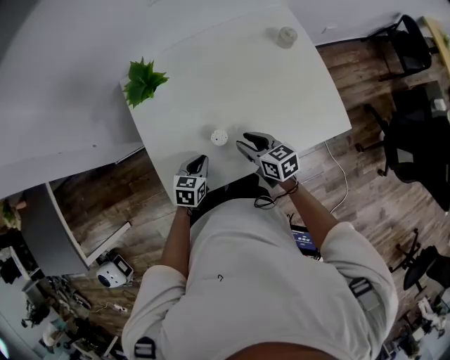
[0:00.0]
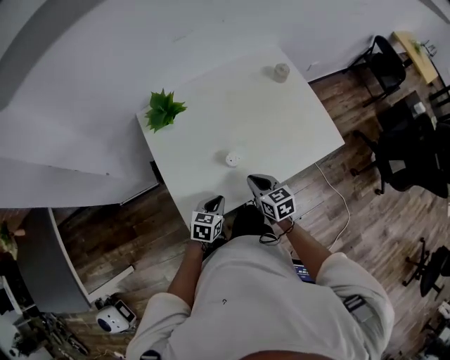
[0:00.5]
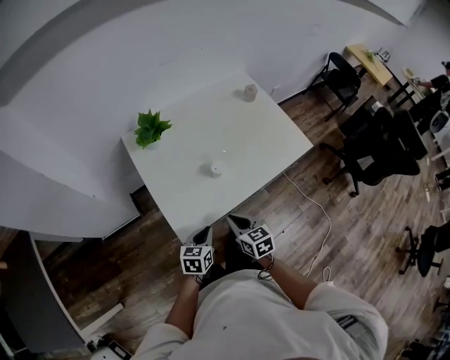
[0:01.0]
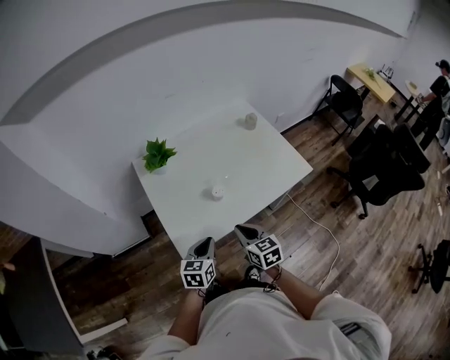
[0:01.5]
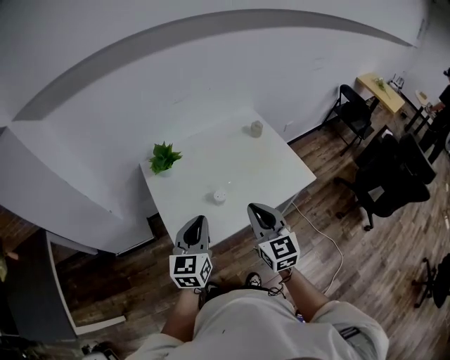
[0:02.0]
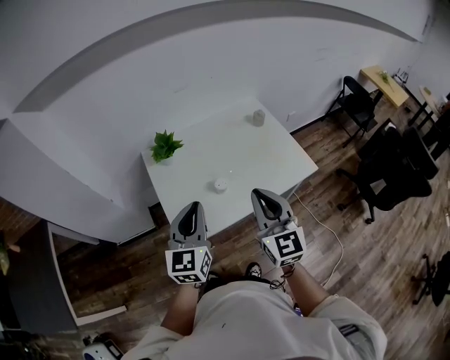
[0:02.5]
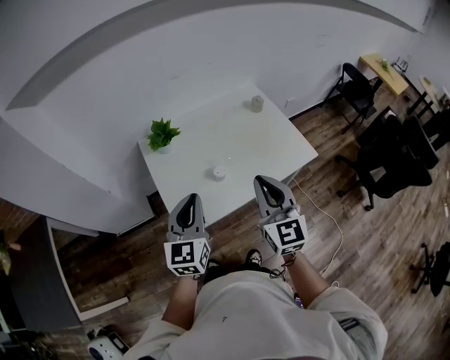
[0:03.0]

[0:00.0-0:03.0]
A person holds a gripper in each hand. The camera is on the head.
0:00.0 to 0:01.5: The grippers both shift backward and upward by approximately 20 cm. The right gripper swivels roughly 30 degrees, and closes up.
0:01.5 to 0:03.0: Both grippers travel together upward, roughly 20 cm. The right gripper rotates roughly 30 degrees. Meanwhile the left gripper changes its angle by approximately 30 degrees.

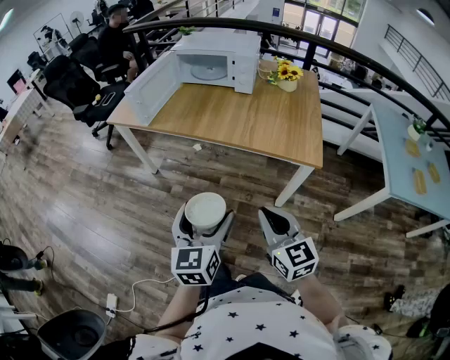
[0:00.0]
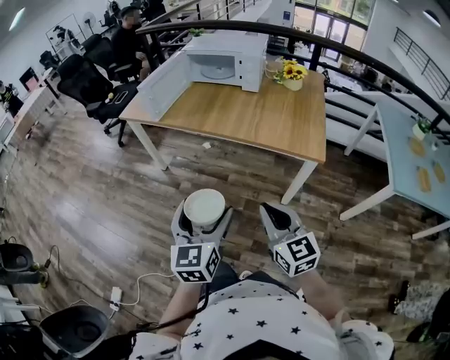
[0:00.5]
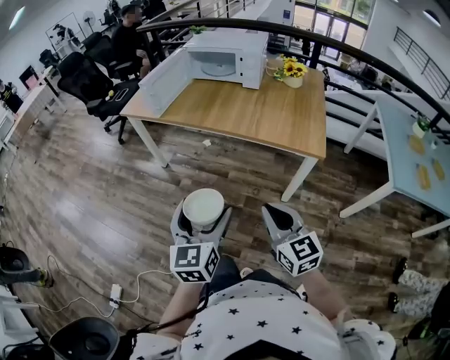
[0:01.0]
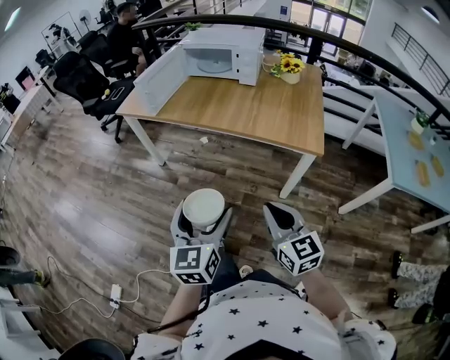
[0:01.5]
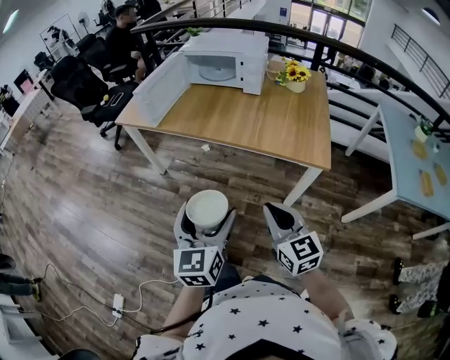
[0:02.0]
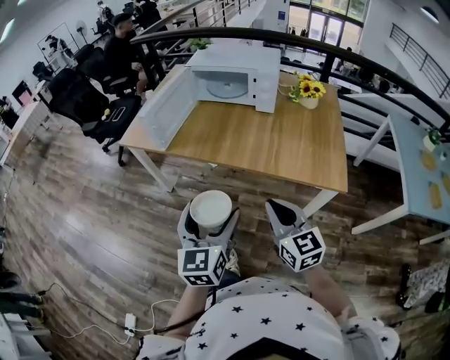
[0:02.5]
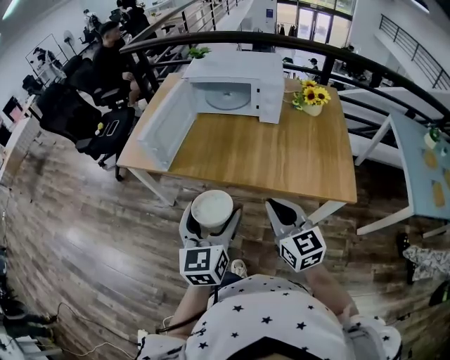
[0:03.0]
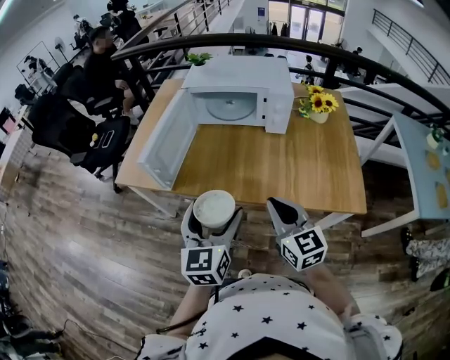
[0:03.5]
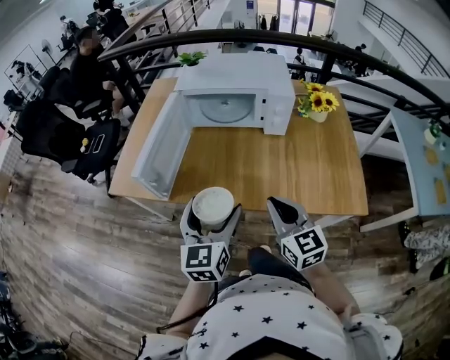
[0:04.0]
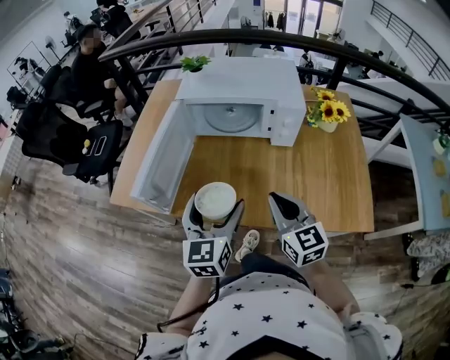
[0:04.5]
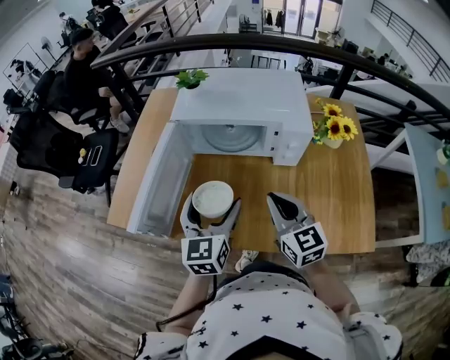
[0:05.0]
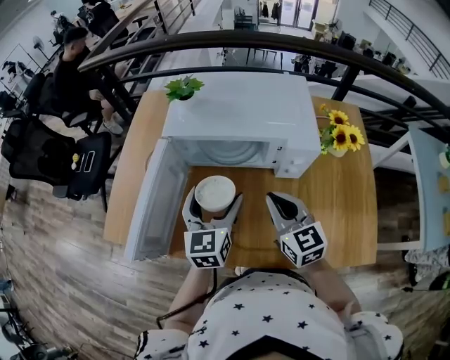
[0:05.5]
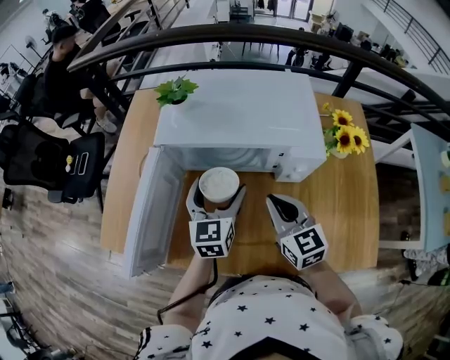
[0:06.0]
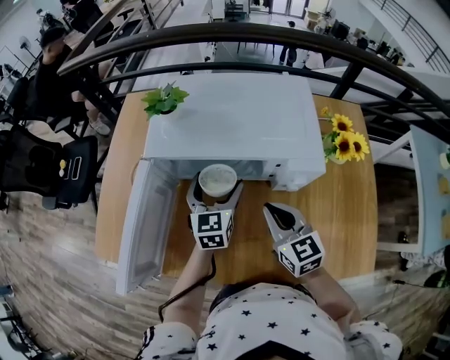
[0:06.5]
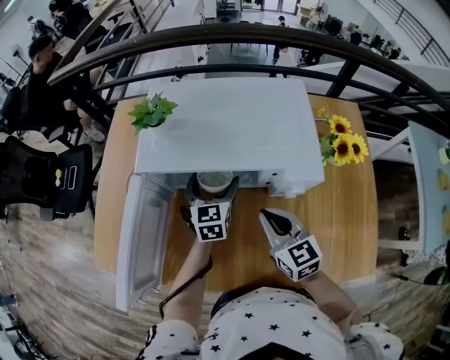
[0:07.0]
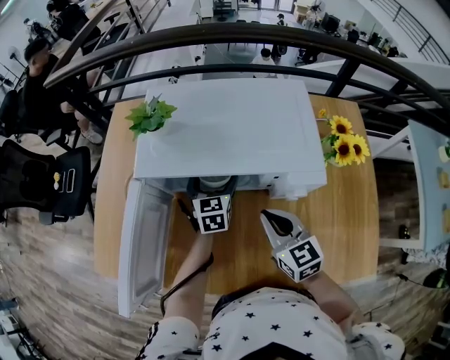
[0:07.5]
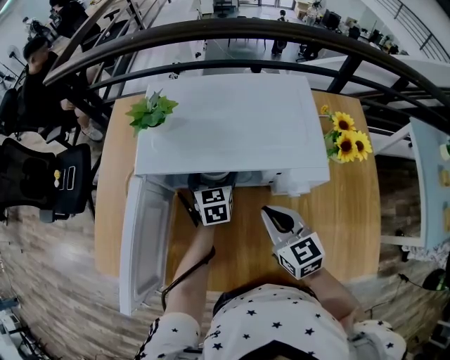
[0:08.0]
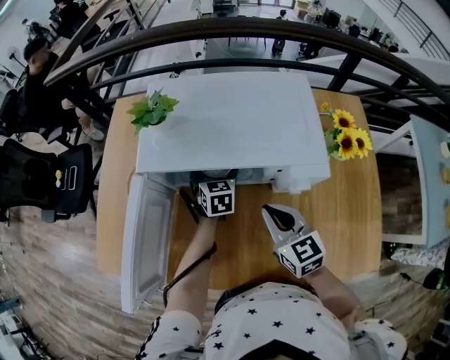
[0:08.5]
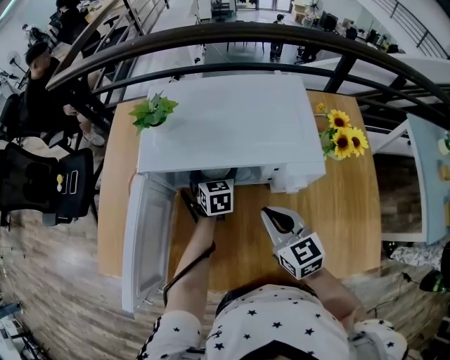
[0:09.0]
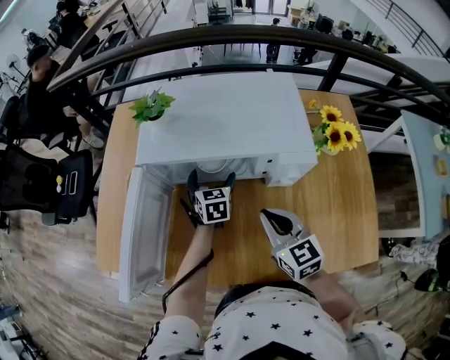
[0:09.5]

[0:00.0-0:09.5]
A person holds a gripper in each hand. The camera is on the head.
0:00.0 to 0:02.0: The right gripper moves about 5 cm backward and comes back.
0:02.0 to 0:04.0: The two grippers go some 40 cm forward.
0:04.0 to 0:05.5: Both grippers travel together forward, about 25 cm.
0:05.5 to 0:07.5: The right gripper goes about 10 cm forward and downward. The left gripper shifts approximately 25 cm forward and downward.
0:07.5 to 0:09.5: There are only small adjustments of the grippers.

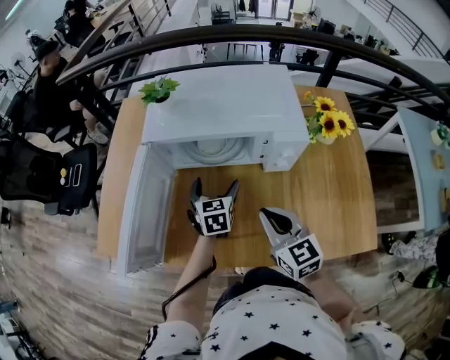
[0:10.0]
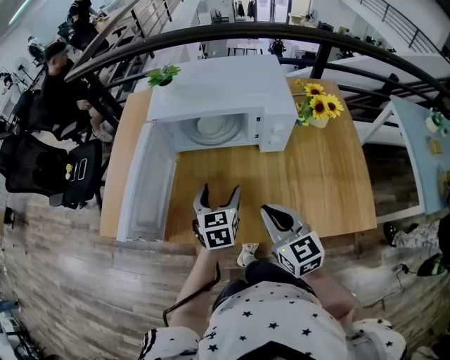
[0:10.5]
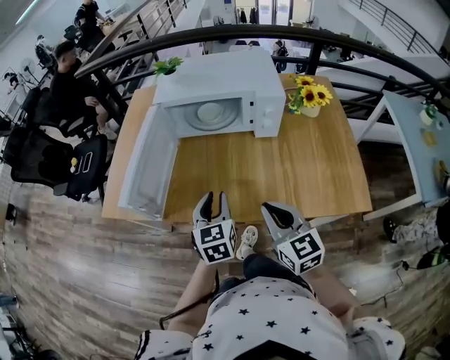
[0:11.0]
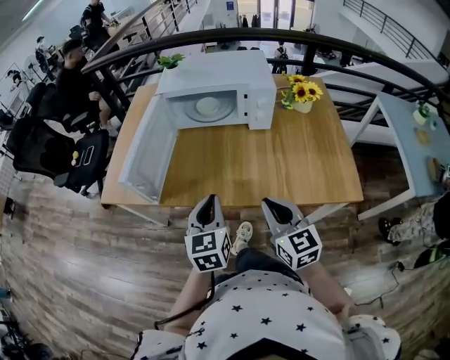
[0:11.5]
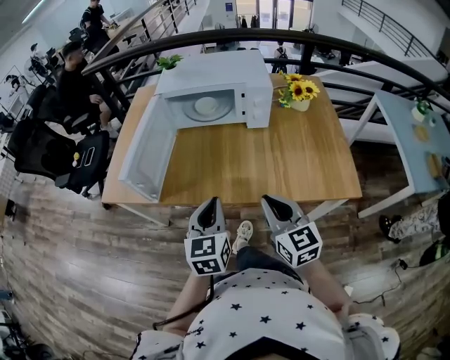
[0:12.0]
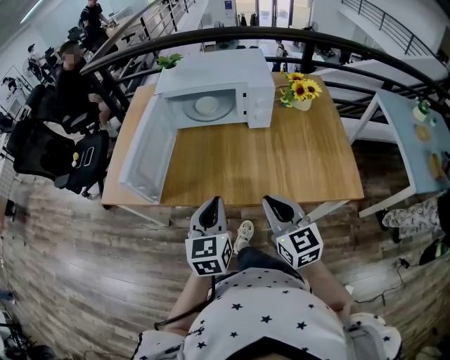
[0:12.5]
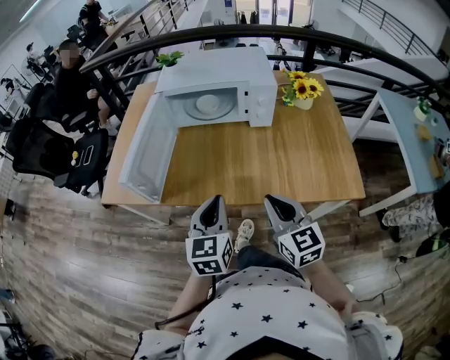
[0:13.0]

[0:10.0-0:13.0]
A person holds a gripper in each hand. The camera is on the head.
0:10.0 to 0:11.5: The two grippers go about 30 cm backward. The left gripper closes up.
0:11.5 to 0:13.0: The grippers make only small movements.

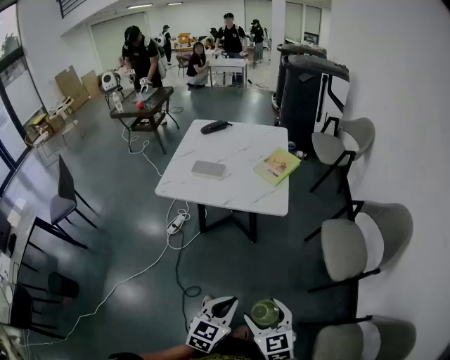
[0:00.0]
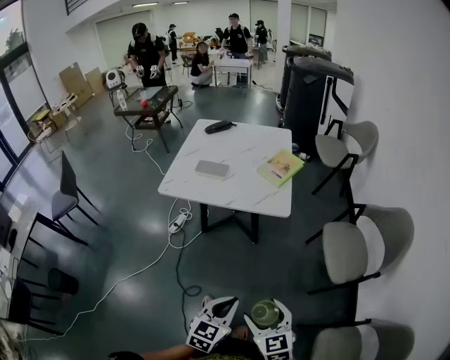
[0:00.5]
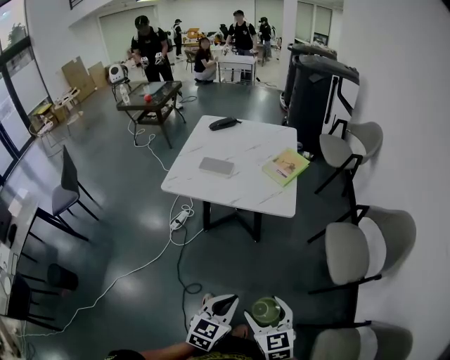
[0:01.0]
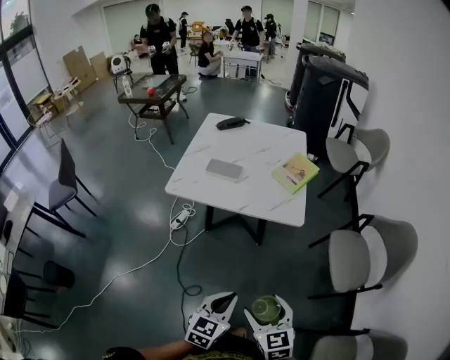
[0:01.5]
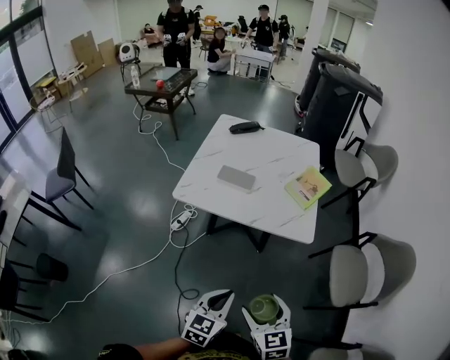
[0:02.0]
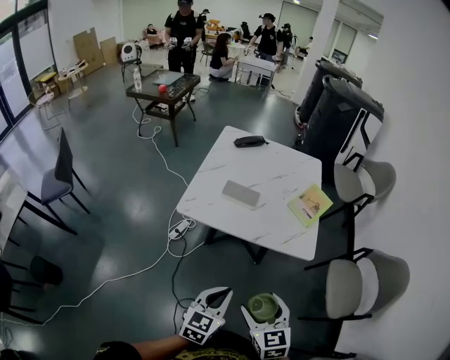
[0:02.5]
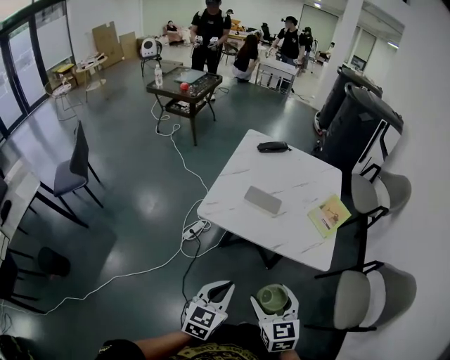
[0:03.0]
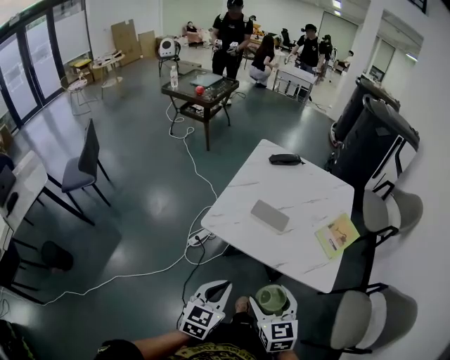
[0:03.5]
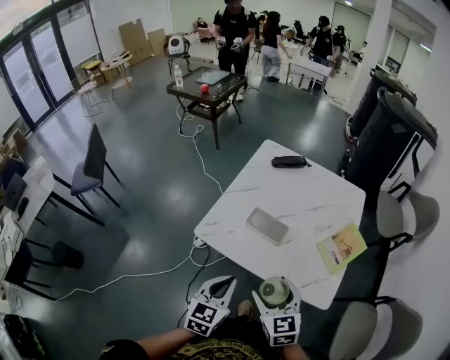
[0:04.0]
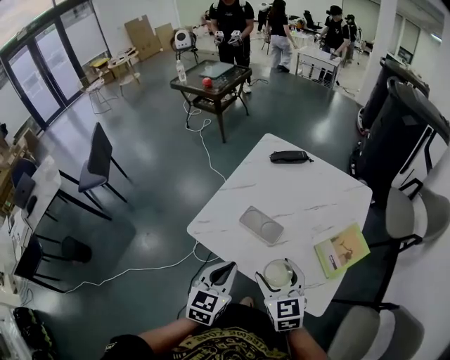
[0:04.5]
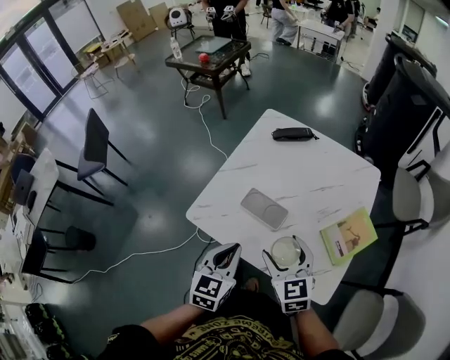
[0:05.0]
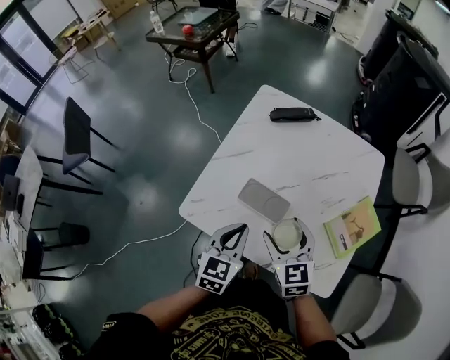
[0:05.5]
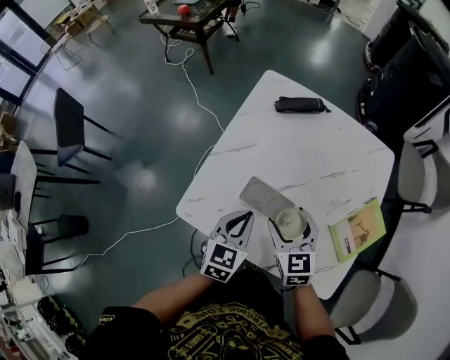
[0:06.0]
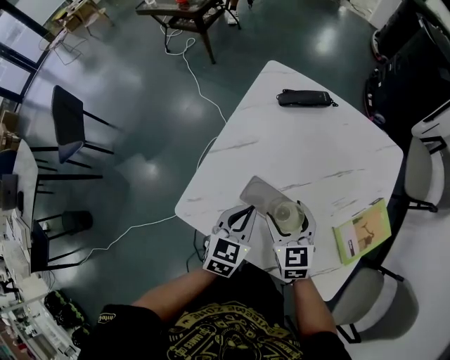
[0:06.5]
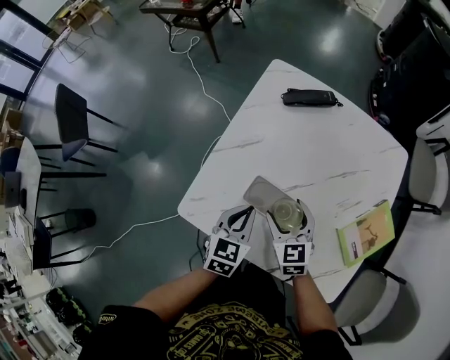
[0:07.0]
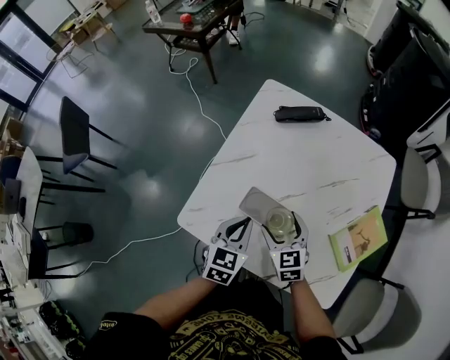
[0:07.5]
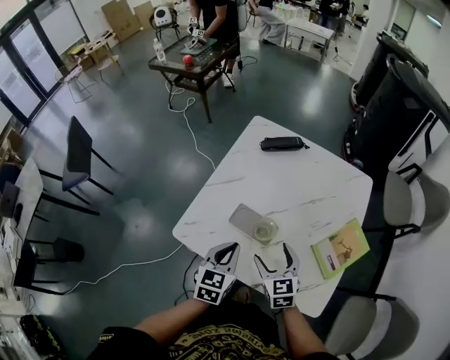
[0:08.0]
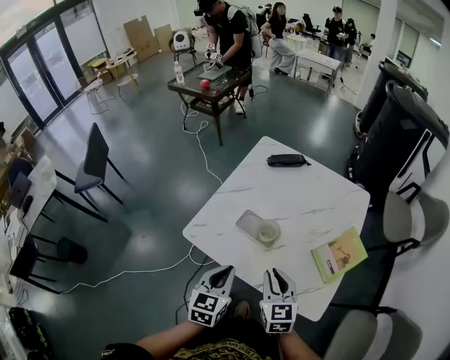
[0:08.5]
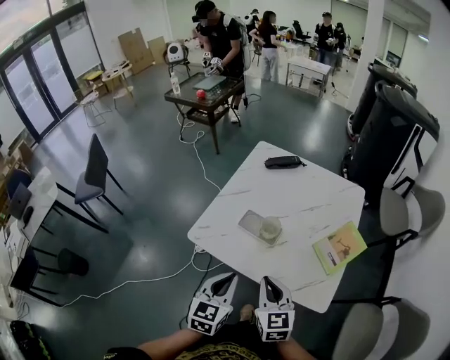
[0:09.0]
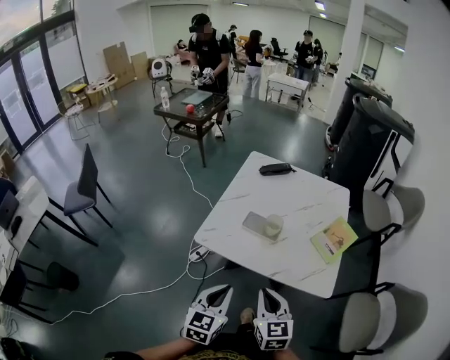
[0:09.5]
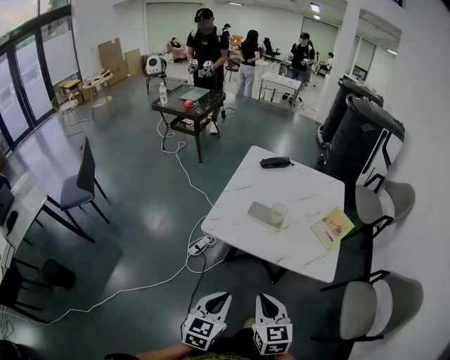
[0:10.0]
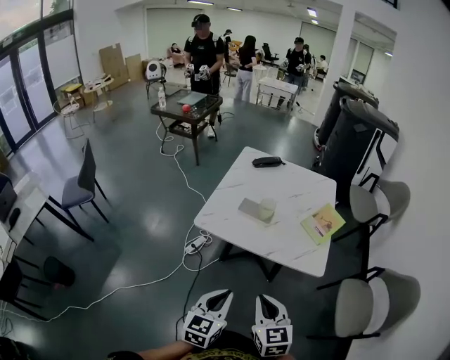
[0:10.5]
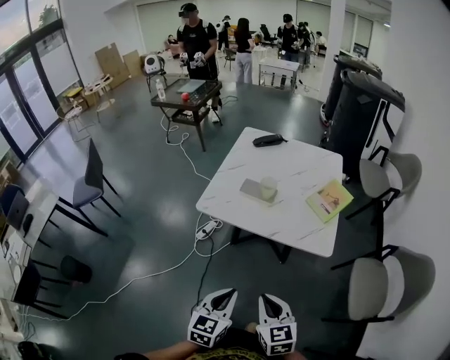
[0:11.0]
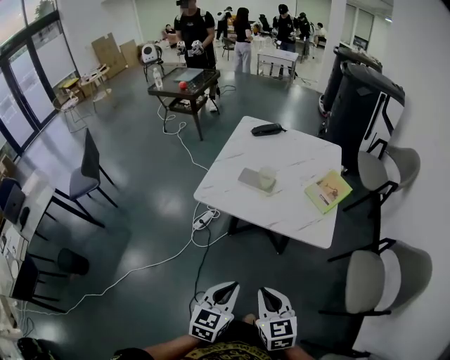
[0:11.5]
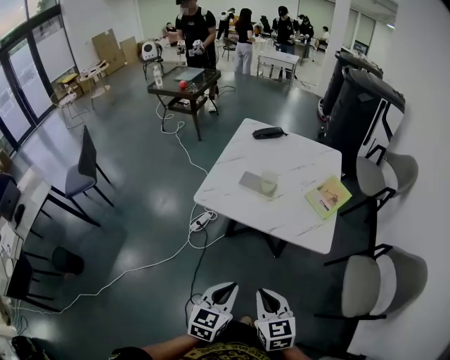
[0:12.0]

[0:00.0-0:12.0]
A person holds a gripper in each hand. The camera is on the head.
0:00.0 to 0:02.0: The left gripper is displaced to the left and forward by about 15 cm, while the right gripper goes about 15 cm forward and to the left.
0:02.0 to 0:04.0: Both grippers travel together forward, some 25 cm.
0:04.0 to 0:06.0: Both grippers travel together forward, some 25 cm.
0:06.0 to 0:08.0: The grippers both shift backward by some 5 cm.
0:08.0 to 0:10.0: Both grippers move backward, some 30 cm. The right gripper closes.
0:10.0 to 0:12.0: The right gripper moves backward and to the right, some 10 cm; the left gripper heads to the right and backward, covering some 10 cm.
